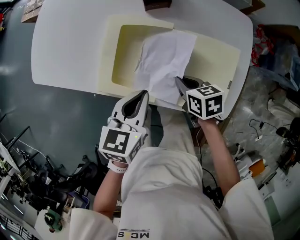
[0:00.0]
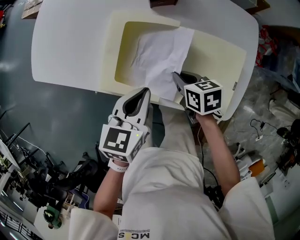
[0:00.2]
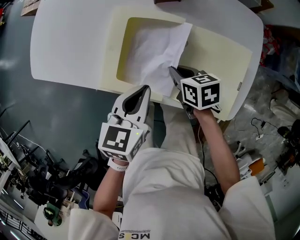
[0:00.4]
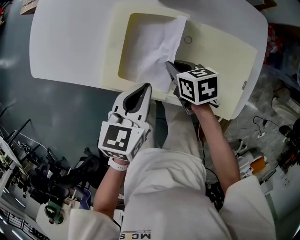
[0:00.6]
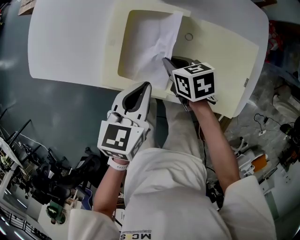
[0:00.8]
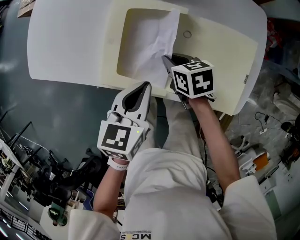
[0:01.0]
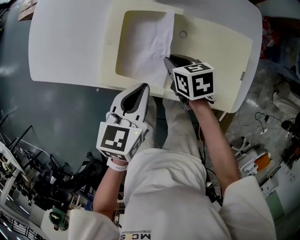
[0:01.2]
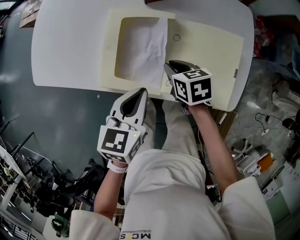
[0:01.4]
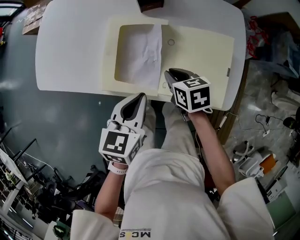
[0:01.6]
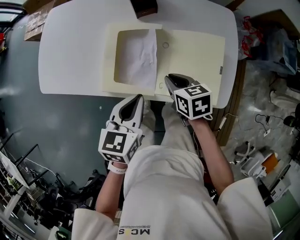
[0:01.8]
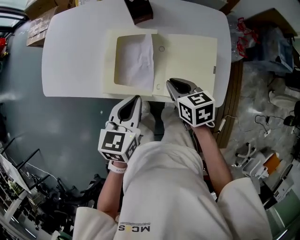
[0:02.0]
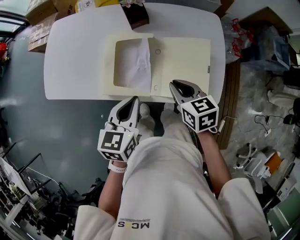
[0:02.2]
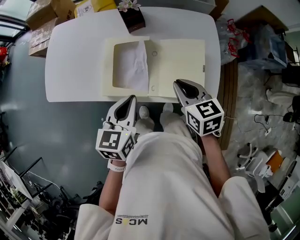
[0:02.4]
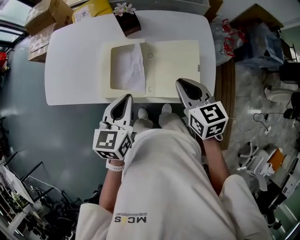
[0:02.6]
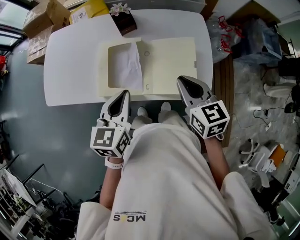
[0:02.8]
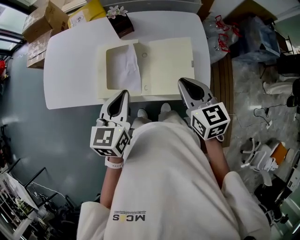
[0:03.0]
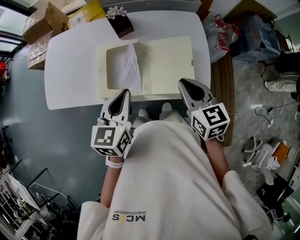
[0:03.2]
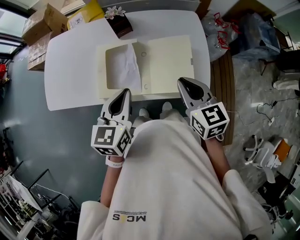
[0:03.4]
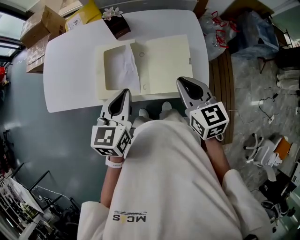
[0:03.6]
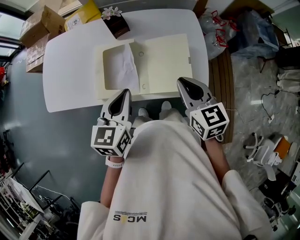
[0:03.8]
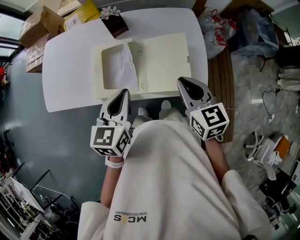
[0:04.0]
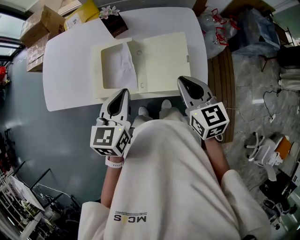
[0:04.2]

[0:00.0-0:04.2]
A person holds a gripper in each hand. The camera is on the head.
1.4 to 2.8 s: The left gripper goes roughly 15 cm upward. Meanwhile the right gripper moves upward and to the right, about 25 cm, and rotates about 30 degrees.
2.8 to 4.2 s: The grippers make only small movements.

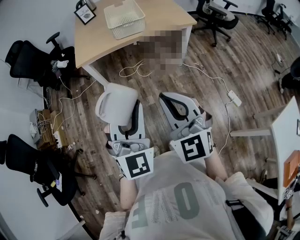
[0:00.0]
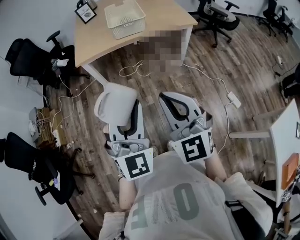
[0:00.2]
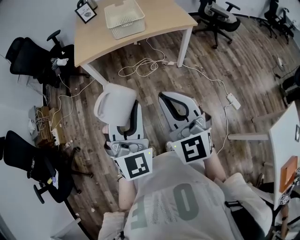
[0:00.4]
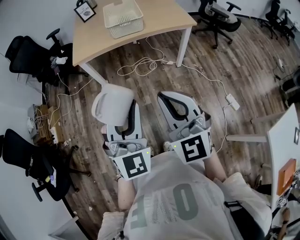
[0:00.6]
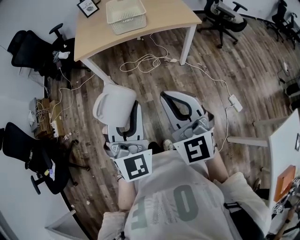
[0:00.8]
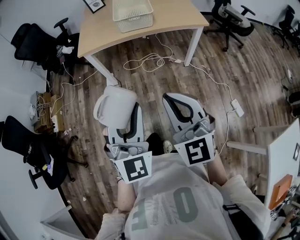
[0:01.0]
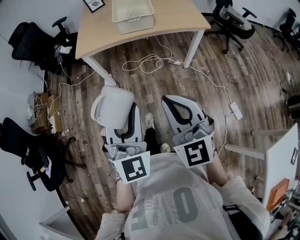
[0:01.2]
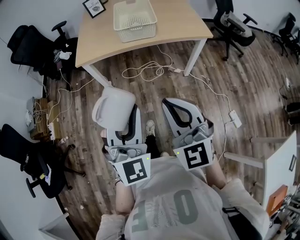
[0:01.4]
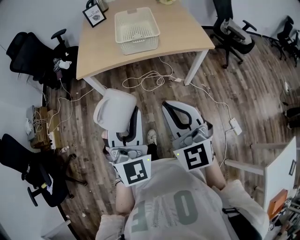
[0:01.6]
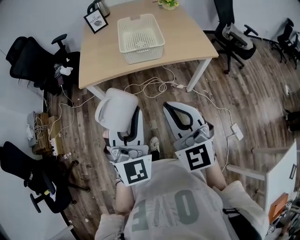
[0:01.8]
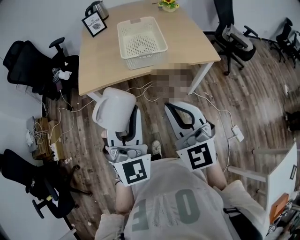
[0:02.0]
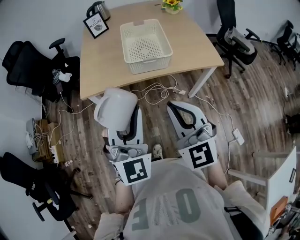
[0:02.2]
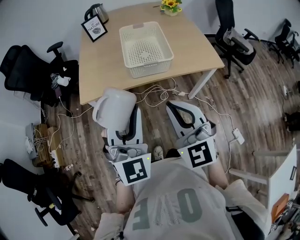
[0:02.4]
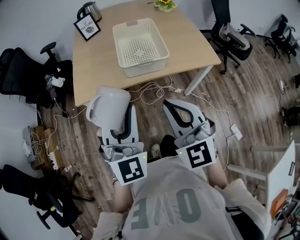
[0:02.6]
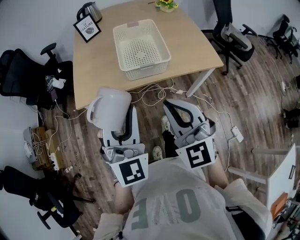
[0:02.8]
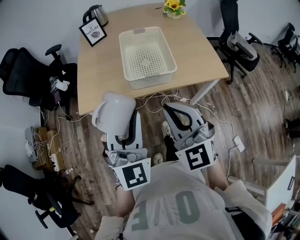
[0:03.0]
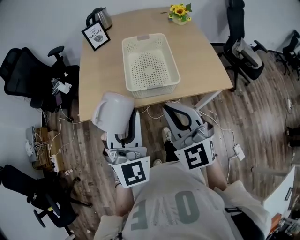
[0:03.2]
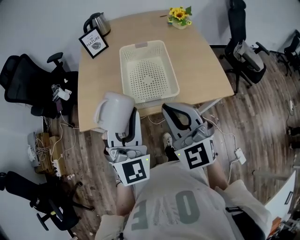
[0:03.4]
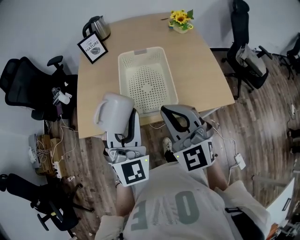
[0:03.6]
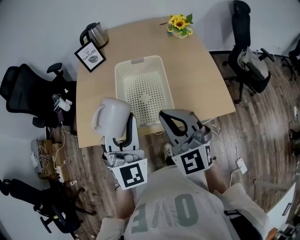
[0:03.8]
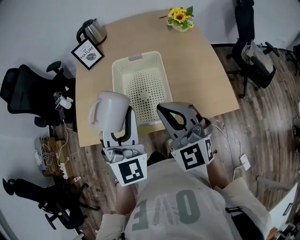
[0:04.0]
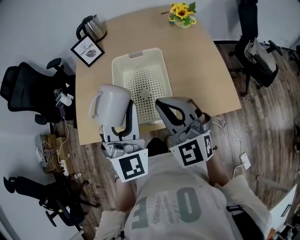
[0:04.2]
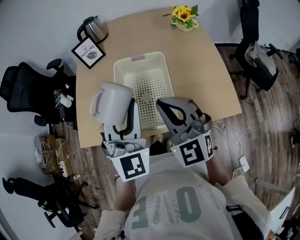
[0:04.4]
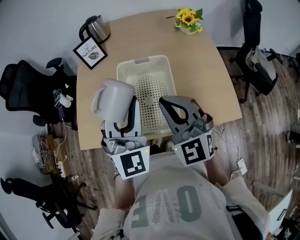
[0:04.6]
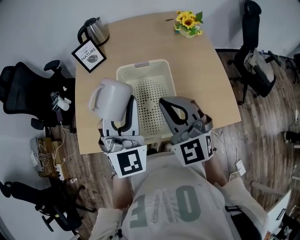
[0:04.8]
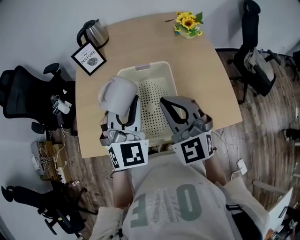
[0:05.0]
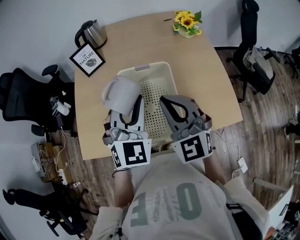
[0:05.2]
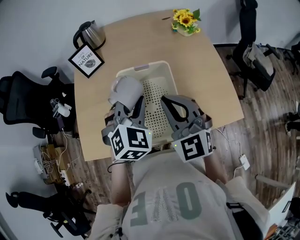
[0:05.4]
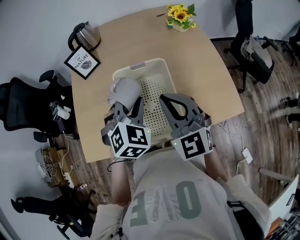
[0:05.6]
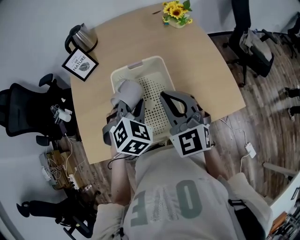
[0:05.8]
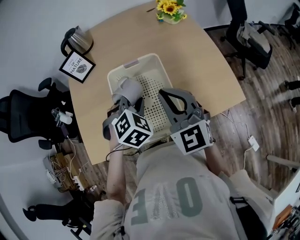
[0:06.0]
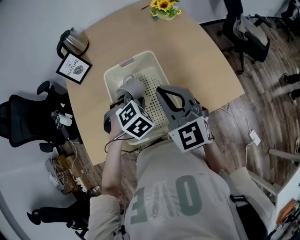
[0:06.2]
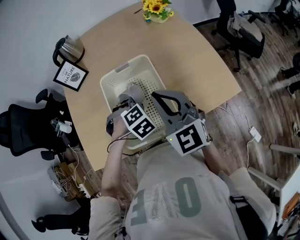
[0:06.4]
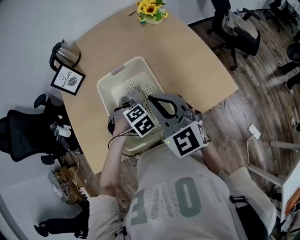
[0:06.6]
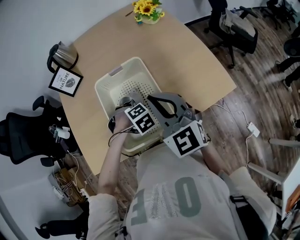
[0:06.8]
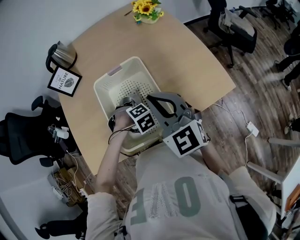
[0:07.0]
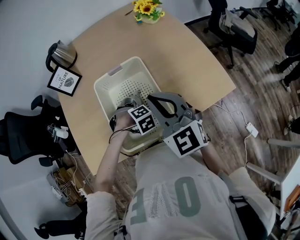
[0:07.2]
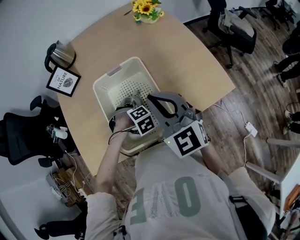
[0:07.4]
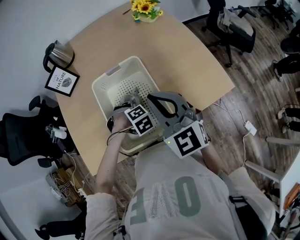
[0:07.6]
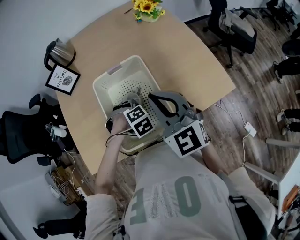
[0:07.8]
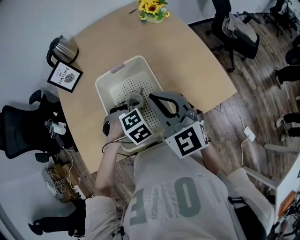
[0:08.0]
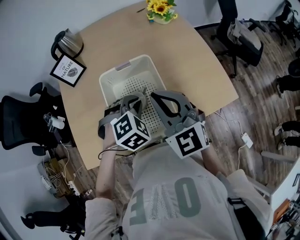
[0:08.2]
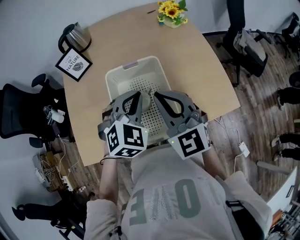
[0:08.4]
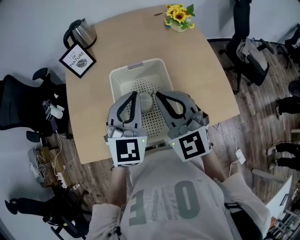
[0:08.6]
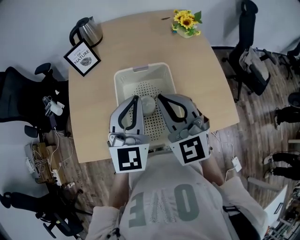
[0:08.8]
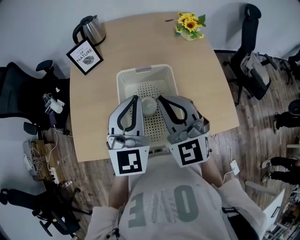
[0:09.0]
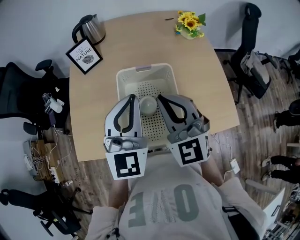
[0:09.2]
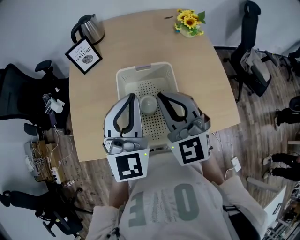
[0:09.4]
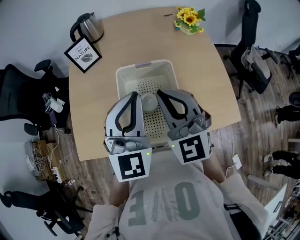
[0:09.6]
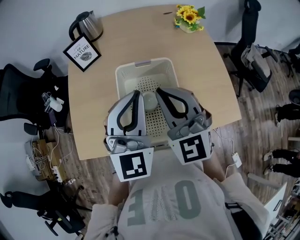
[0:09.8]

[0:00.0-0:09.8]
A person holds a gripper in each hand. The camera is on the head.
0.0 to 1.4 s: Both grippers travel together forward, about 10 cm.
1.4 to 2.8 s: The grippers both shift forward by roughly 25 cm.
2.8 to 4.2 s: The left gripper goes roughly 30 cm forward and to the right; the right gripper shifts approximately 30 cm forward.
4.2 to 5.6 s: The right gripper goes about 10 cm forward, while the left gripper is displaced forward and downward by some 15 cm, and angles its fingers downward, by some 30 degrees.
5.6 to 7.0 s: The left gripper goes approximately 20 cm downward, and tips its fingers downward by approximately 50 degrees.
7.0 to 8.4 s: The left gripper travels upward by roughly 20 cm, and points its fingers roughly 50 degrees further upward.
8.4 to 9.8 s: The left gripper moves upward and to the left, about 10 cm, and angles its fingers upward, by approximately 30 degrees. Meanwhile the right gripper ends up approximately 5 cm from where it was.

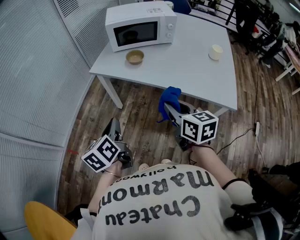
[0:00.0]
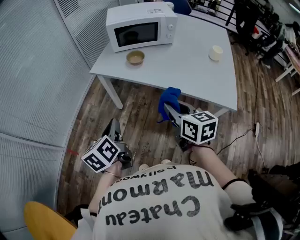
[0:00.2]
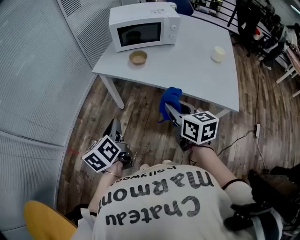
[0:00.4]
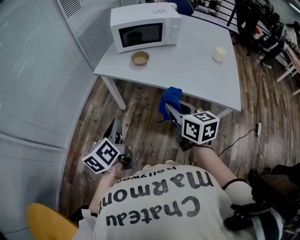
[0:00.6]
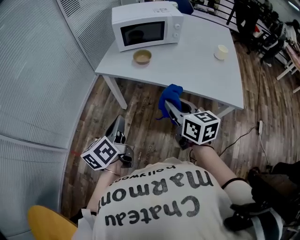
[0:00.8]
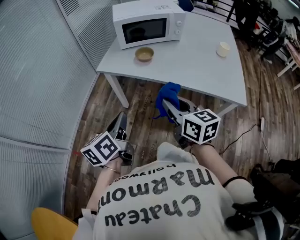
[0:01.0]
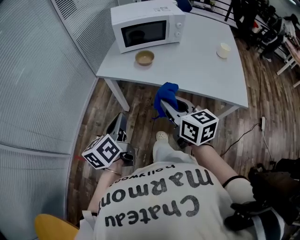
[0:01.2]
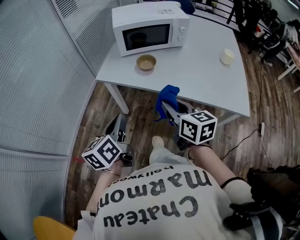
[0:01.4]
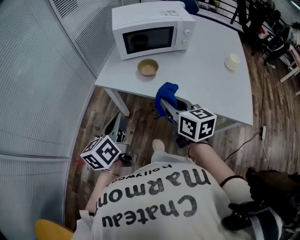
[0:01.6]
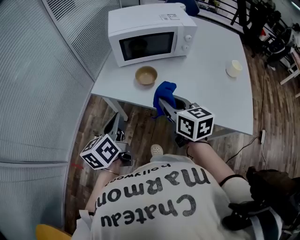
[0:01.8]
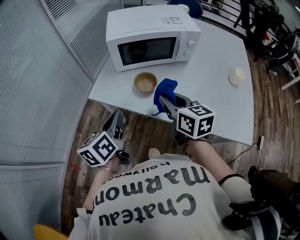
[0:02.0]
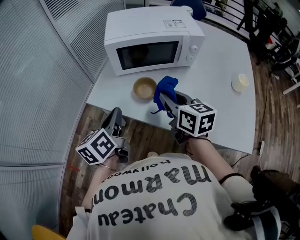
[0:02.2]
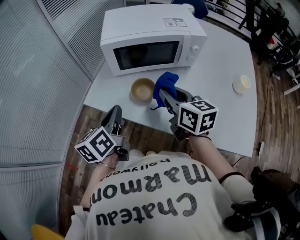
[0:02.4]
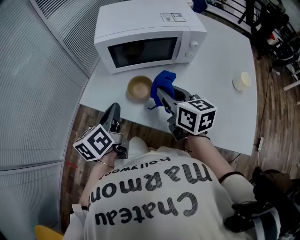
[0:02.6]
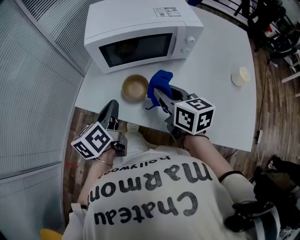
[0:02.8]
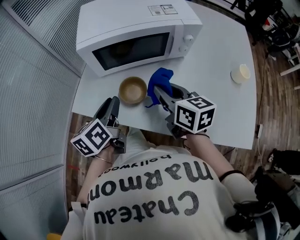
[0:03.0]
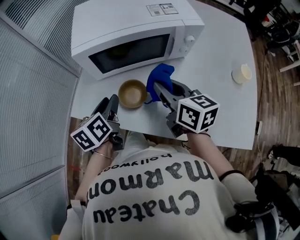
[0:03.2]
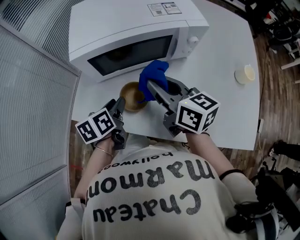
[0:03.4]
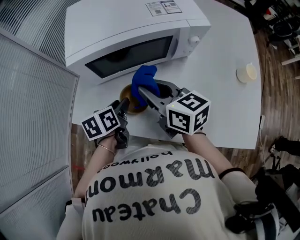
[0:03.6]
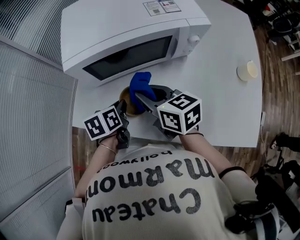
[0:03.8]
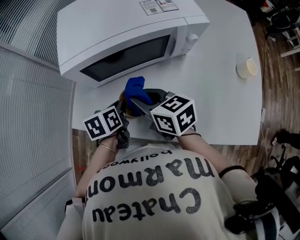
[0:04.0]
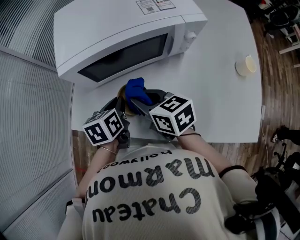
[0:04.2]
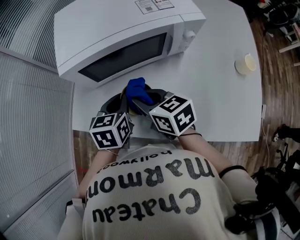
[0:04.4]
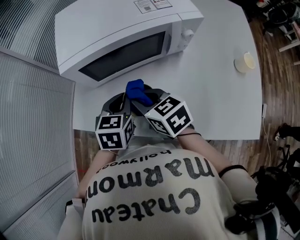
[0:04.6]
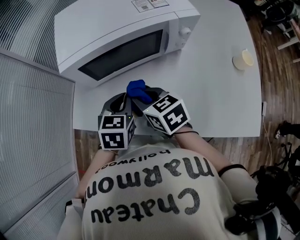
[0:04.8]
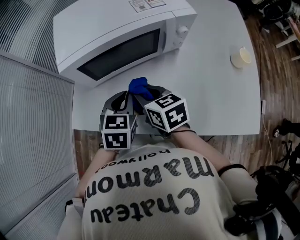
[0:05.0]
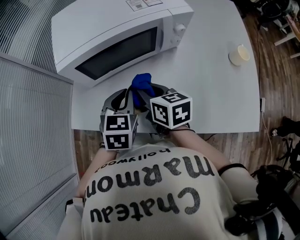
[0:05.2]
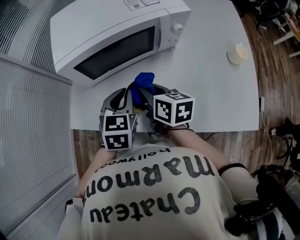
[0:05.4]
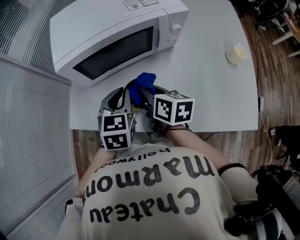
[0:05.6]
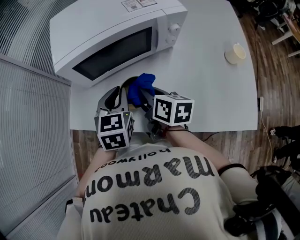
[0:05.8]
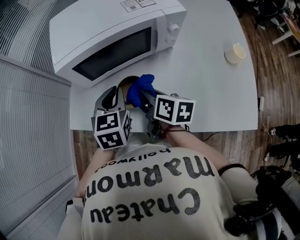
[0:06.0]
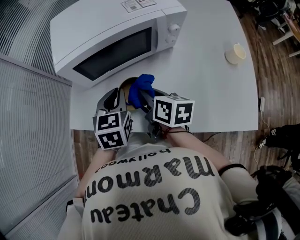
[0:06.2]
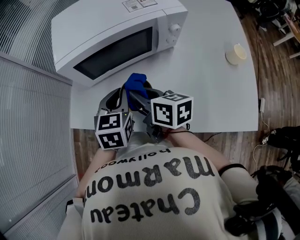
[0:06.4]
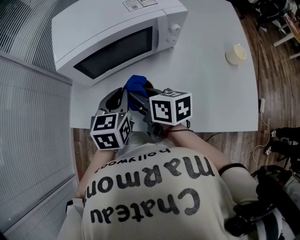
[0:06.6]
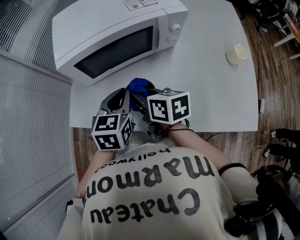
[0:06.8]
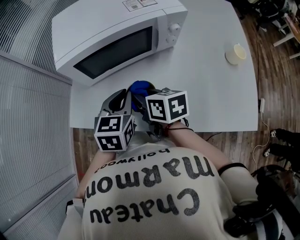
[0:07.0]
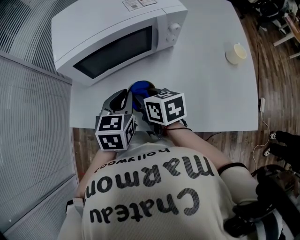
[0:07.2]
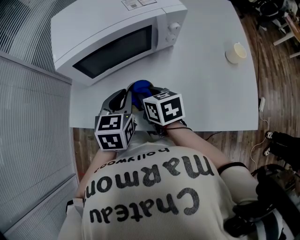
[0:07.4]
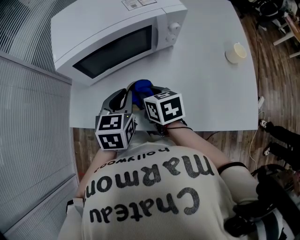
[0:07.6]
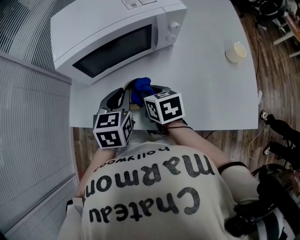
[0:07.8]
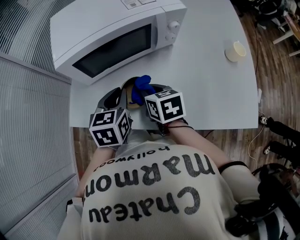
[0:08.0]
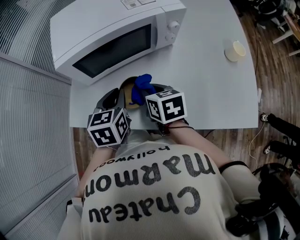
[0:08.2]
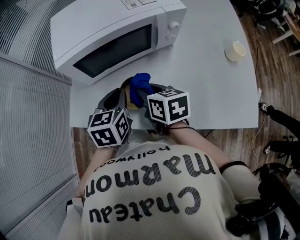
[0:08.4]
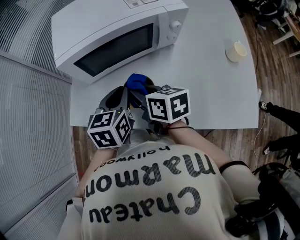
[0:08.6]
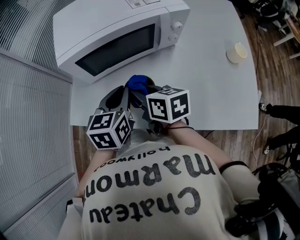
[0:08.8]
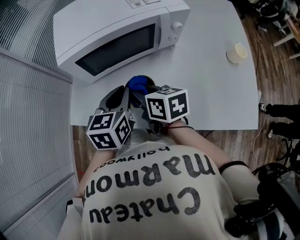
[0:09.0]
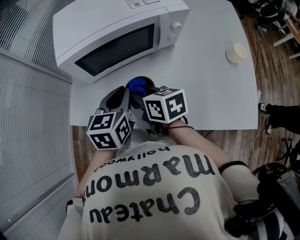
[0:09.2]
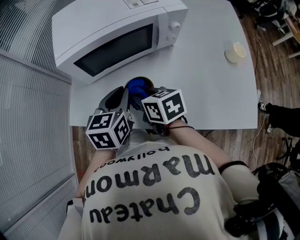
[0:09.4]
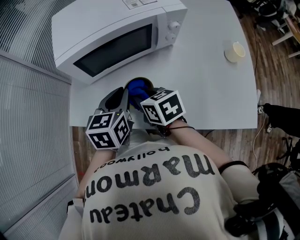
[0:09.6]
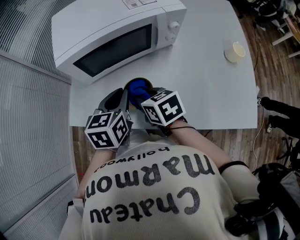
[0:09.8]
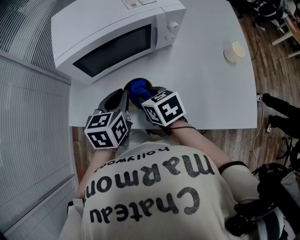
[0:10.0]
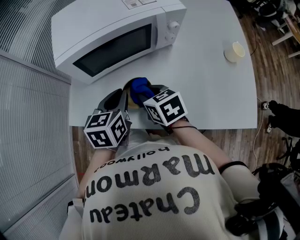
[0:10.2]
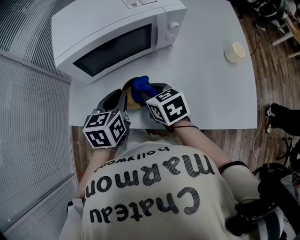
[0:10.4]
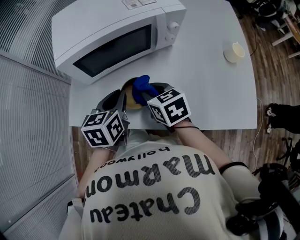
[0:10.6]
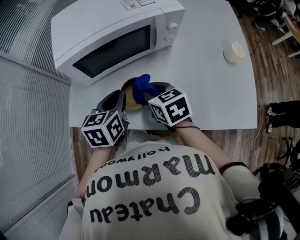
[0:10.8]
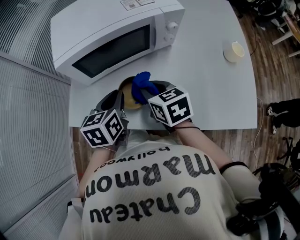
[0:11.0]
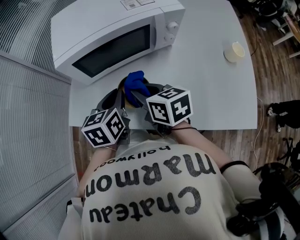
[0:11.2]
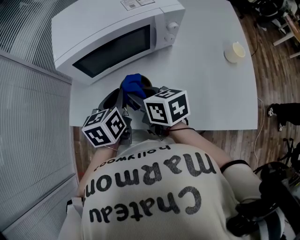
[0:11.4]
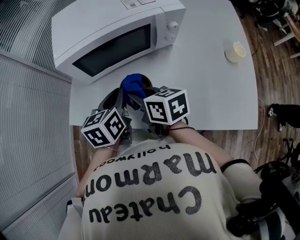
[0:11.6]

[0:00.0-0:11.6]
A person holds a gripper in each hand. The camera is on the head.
0.0 to 1.4 s: The left gripper moves forward, approximately 10 cm. The right gripper goes about 10 cm forward and to the left.
1.4 to 2.8 s: Both grippers travel together forward, about 25 cm.
2.8 to 4.4 s: The right gripper travels downward, to the left and forward by roughly 10 cm, while the left gripper moves forward, downward and to the right, some 15 cm, rotates some 40 degrees, and opens and closes again.
4.4 to 5.8 s: The right gripper heads to the right, covering about 5 cm, and swivels some 30 degrees; the left gripper changes place by approximately 5 cm.
5.8 to 7.2 s: The grippers move only a little.
7.2 to 8.8 s: The grippers make only small movements.
8.8 to 10.2 s: The right gripper swivels about 20 degrees.
10.2 to 11.6 s: The right gripper ends up some 5 cm from where it was, and turns by some 20 degrees.
